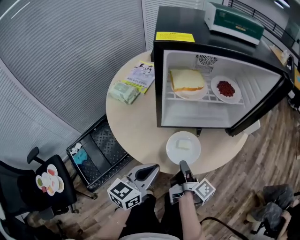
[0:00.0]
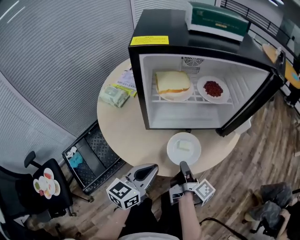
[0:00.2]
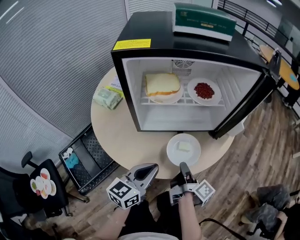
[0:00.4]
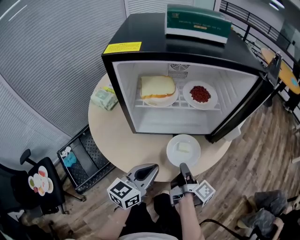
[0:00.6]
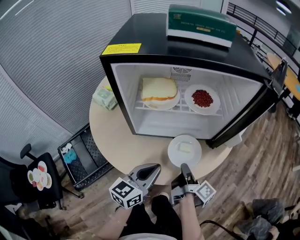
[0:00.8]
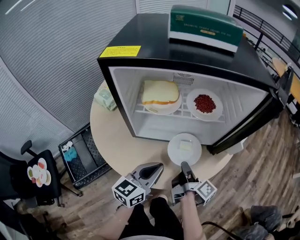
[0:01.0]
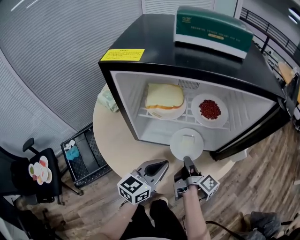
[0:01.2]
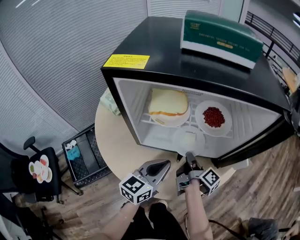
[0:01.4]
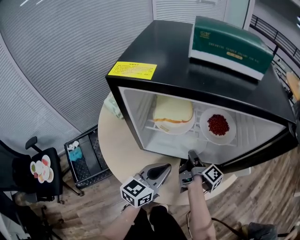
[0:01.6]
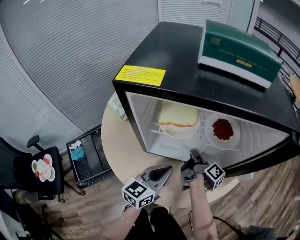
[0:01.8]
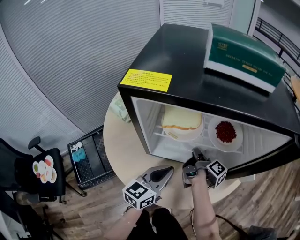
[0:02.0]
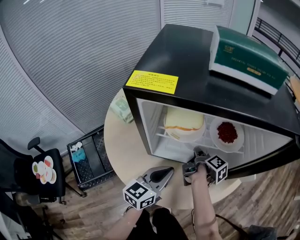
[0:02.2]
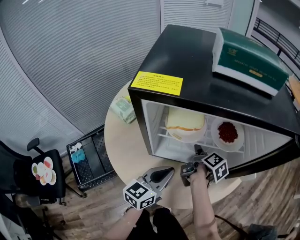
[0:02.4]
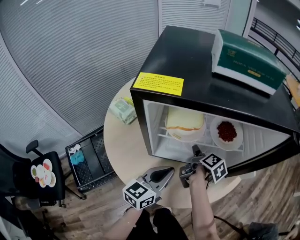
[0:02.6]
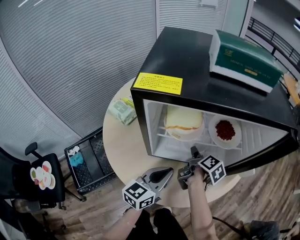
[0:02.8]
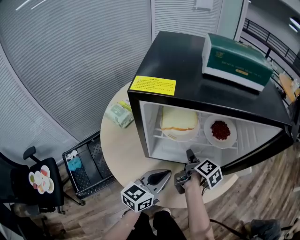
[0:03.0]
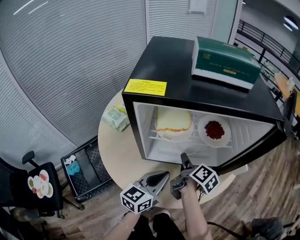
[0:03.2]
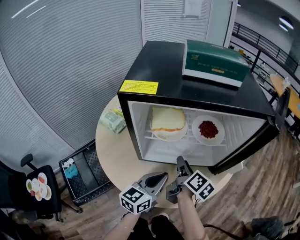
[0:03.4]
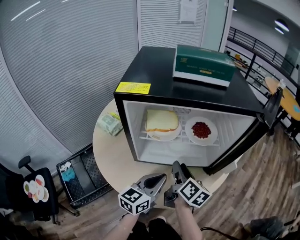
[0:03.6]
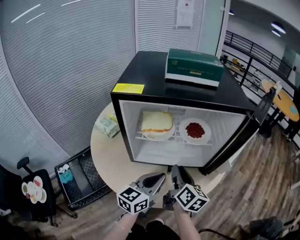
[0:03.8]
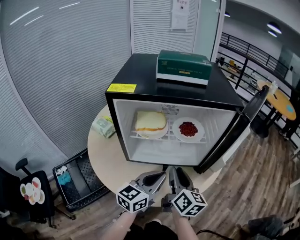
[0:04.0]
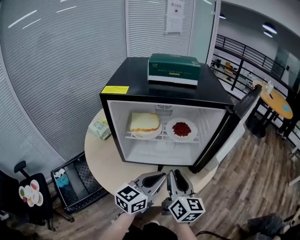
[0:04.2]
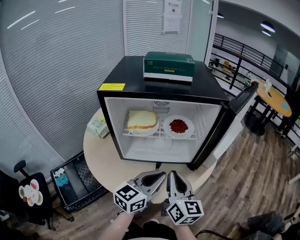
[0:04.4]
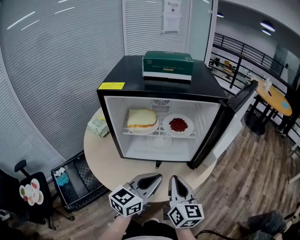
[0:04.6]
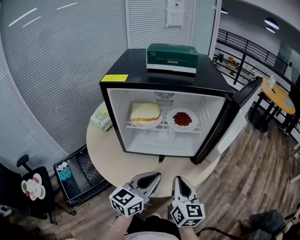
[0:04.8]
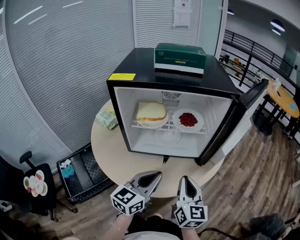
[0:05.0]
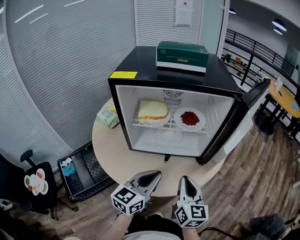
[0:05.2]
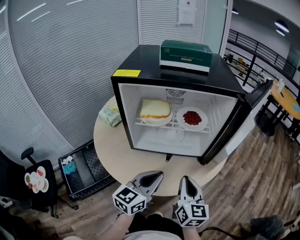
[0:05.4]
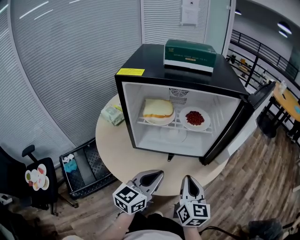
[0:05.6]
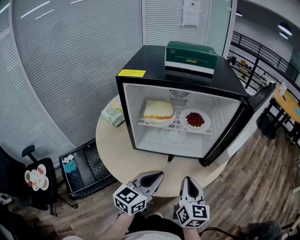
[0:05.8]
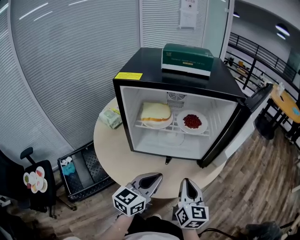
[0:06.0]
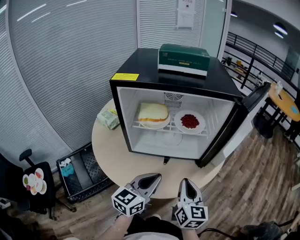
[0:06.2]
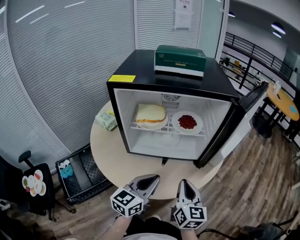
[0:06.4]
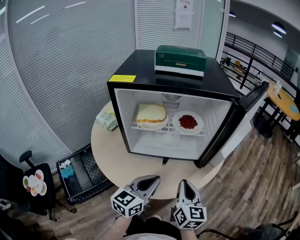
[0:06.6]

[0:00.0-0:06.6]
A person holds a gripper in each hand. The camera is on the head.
0:00.0 to 0:01.6: The right gripper travels forward by about 25 cm. The left gripper is displaced forward and to the right by about 20 cm.
0:01.6 to 0:03.2: The right gripper ends up approximately 5 cm from where it was, swivels some 20 degrees, and opens.
0:03.2 to 0:05.0: The right gripper moves backward, to the right and upward, about 20 cm, twists some 50 degrees counterclockwise, seen from behind, and closes up. Meanwhile the left gripper is displaced to the right, backward and upward by about 10 cm.
0:05.0 to 0:06.6: The grippers stay close to where they were, moving slightly.

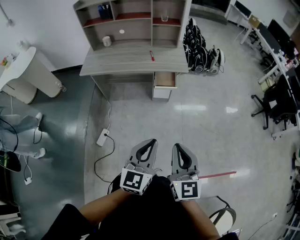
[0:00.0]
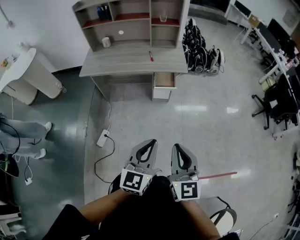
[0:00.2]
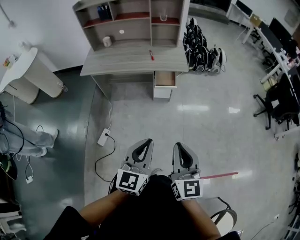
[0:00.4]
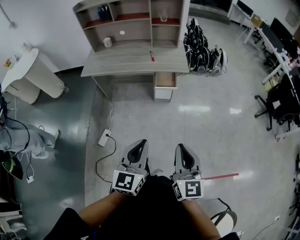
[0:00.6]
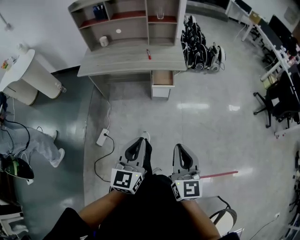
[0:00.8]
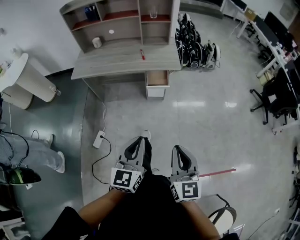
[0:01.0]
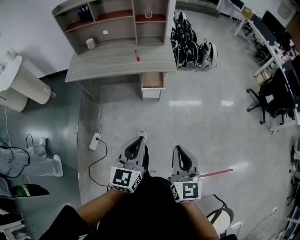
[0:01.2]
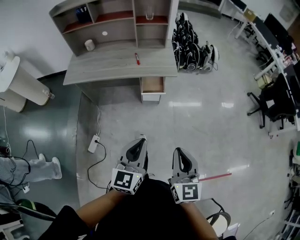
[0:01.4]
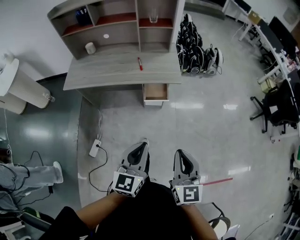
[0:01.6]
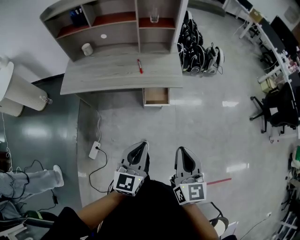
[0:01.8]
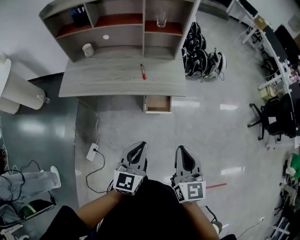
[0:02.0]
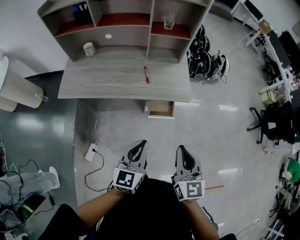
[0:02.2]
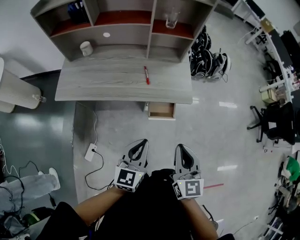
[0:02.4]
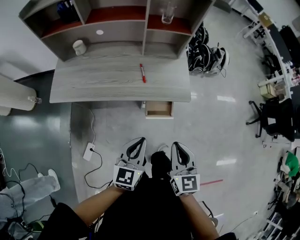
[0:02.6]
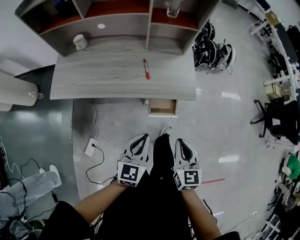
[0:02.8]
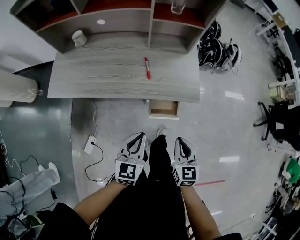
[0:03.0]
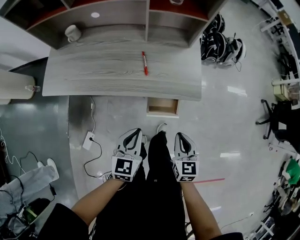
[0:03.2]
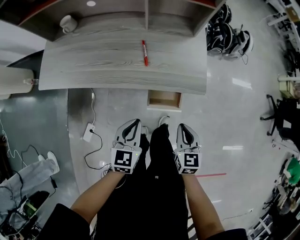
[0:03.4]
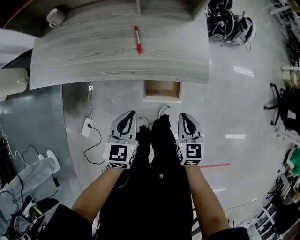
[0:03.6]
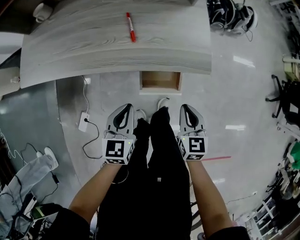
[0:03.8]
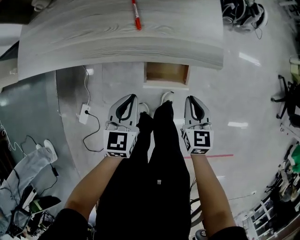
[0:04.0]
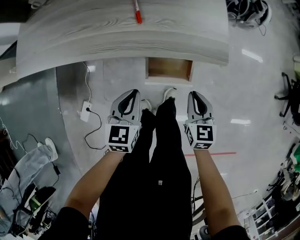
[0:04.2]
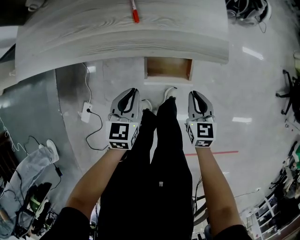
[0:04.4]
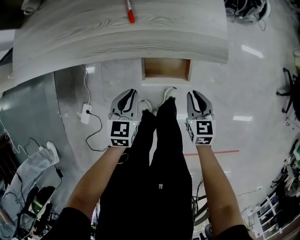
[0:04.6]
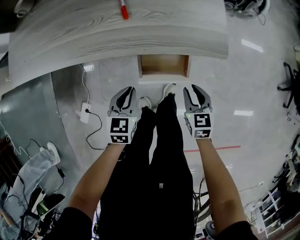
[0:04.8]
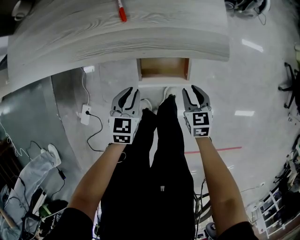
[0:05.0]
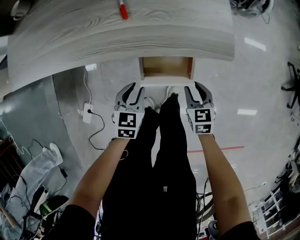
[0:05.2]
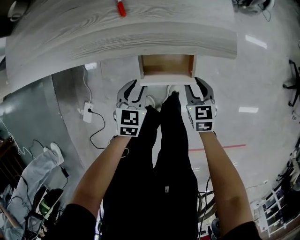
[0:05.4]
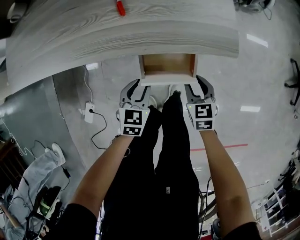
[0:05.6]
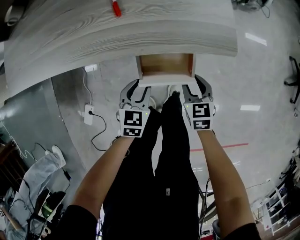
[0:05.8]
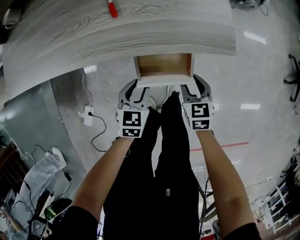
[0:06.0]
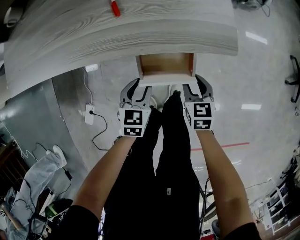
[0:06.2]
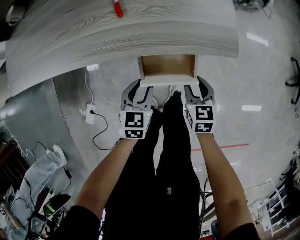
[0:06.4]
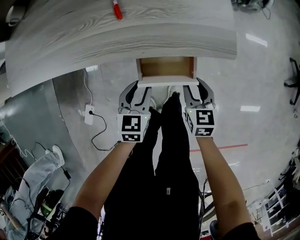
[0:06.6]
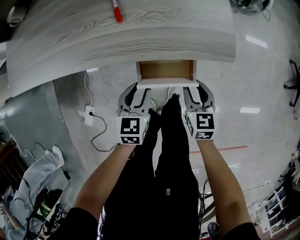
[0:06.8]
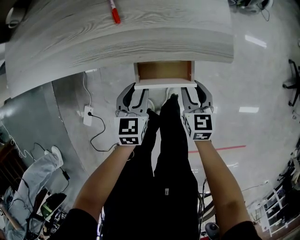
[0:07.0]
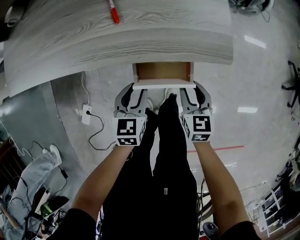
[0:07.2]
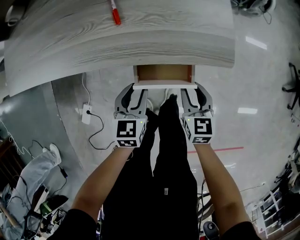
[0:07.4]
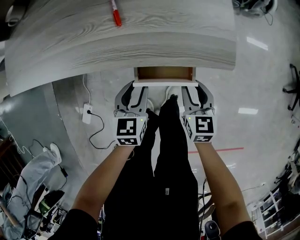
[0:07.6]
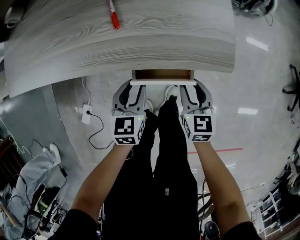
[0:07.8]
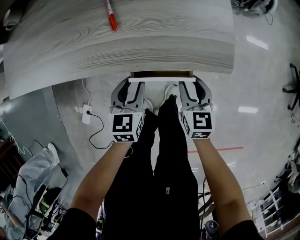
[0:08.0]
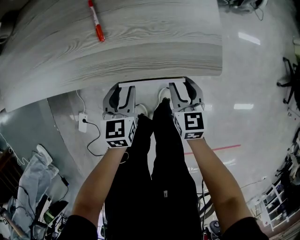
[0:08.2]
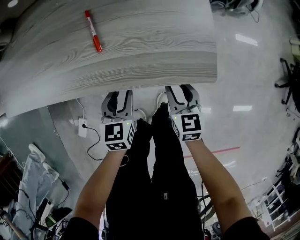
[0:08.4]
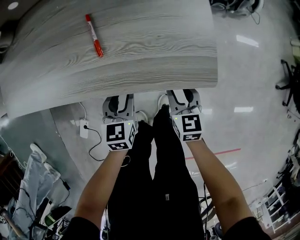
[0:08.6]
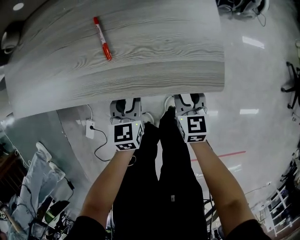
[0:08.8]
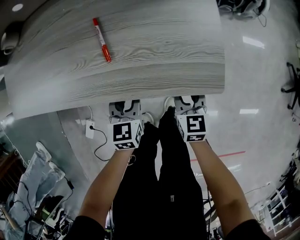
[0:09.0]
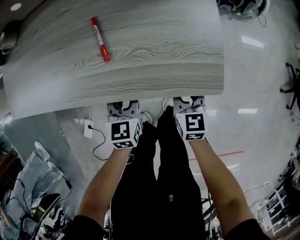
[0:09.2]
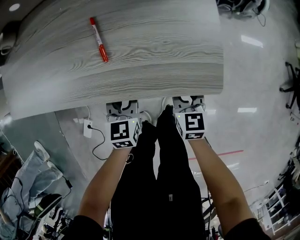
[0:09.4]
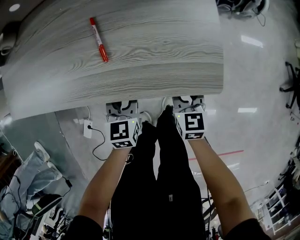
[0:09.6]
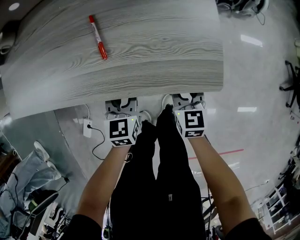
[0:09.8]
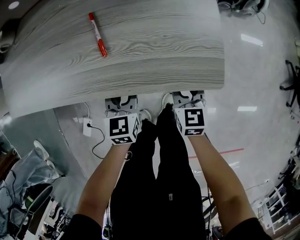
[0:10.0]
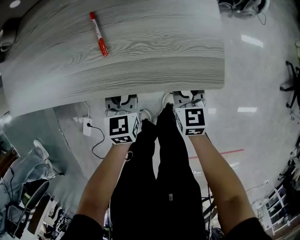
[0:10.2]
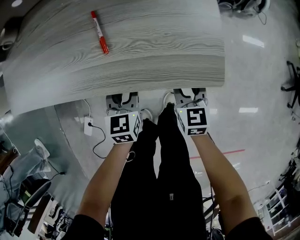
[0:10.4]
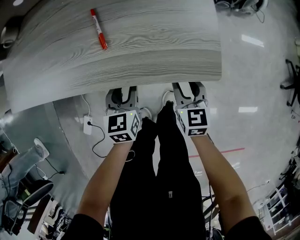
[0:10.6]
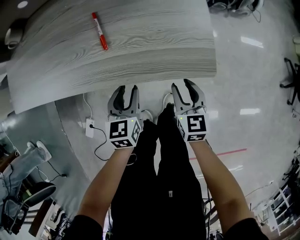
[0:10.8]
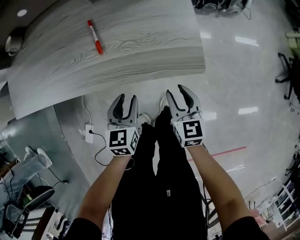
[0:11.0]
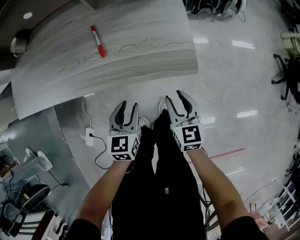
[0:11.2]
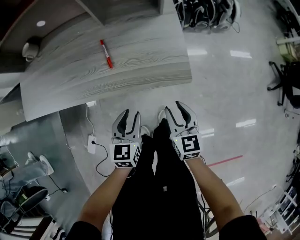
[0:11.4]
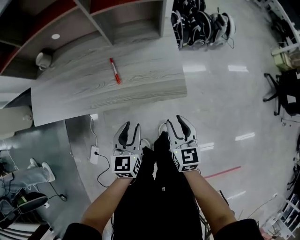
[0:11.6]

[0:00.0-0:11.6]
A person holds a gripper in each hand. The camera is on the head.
0:00.0 to 0:01.4: The right gripper goes about 15 cm forward and to the right. Meanwhile the left gripper heads forward, covering about 10 cm.
0:01.4 to 0:02.8: The grippers both shift forward by roughly 30 cm.
0:02.8 to 0:04.4: The two grippers go some 30 cm downward.
0:04.4 to 0:05.8: Both grippers move downward, roughly 10 cm. The left gripper opens up. Meanwhile the right gripper opens.
0:05.8 to 0:07.2: The left gripper moves about 5 cm.
0:07.2 to 0:08.8: The grippers both shift forward by about 10 cm.
0:08.8 to 0:10.2: The grippers make only small movements.
0:10.2 to 0:11.6: Both grippers travel together upward and backward, some 20 cm.

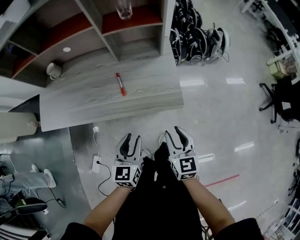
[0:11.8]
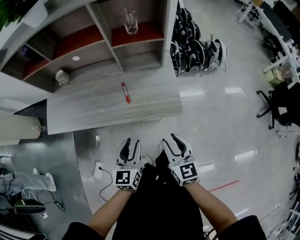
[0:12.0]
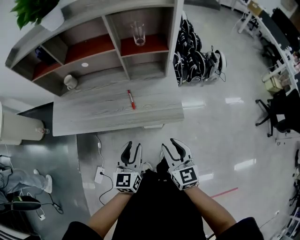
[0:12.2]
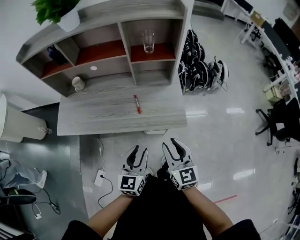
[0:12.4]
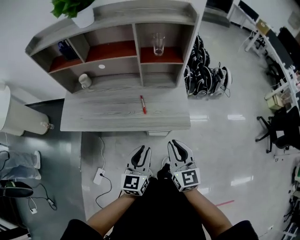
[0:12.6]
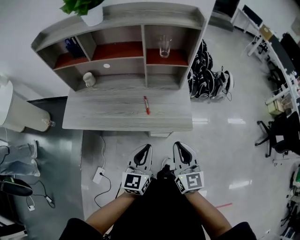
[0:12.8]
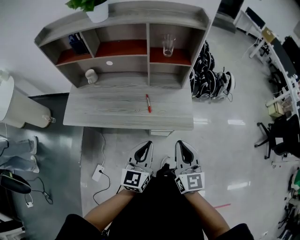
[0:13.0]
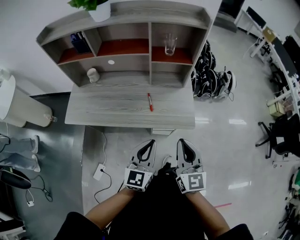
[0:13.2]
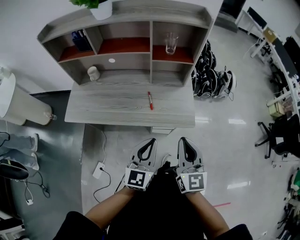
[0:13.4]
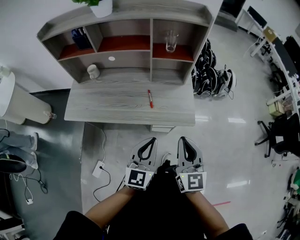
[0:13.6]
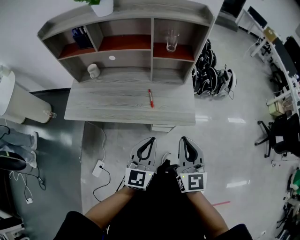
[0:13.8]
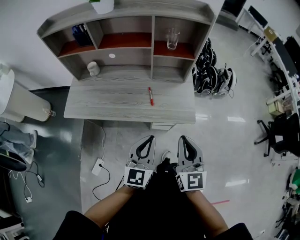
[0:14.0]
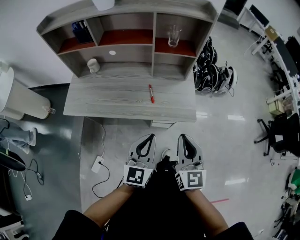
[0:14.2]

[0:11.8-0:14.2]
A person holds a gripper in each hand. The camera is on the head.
0:11.8 to 0:13.0: Both grippers move upward, approximately 20 cm. The left gripper closes; the right gripper changes its angle by some 20 degrees, and closes up.
0:13.0 to 0:14.2: There are only small adjustments of the grippers.

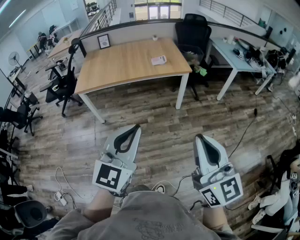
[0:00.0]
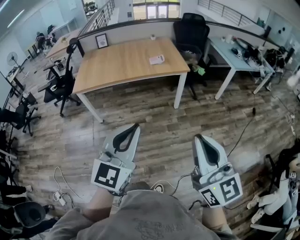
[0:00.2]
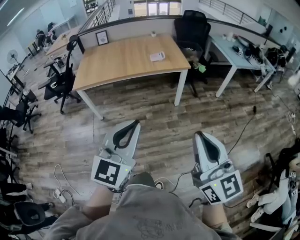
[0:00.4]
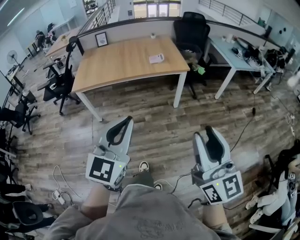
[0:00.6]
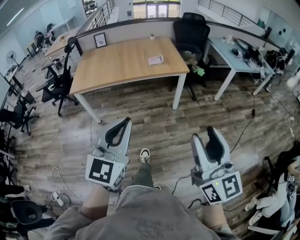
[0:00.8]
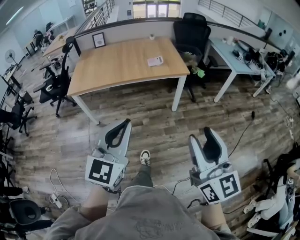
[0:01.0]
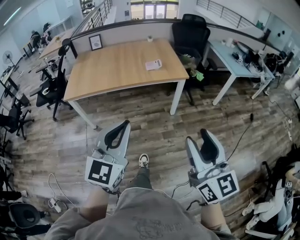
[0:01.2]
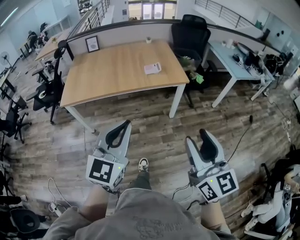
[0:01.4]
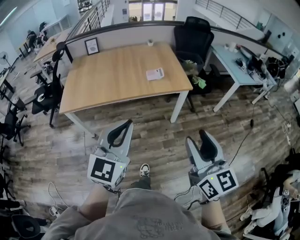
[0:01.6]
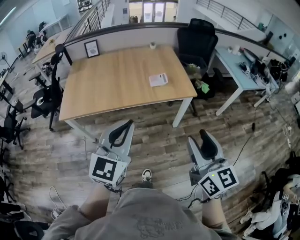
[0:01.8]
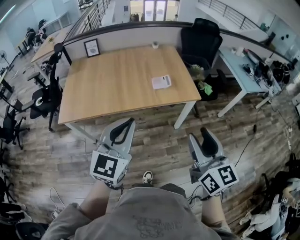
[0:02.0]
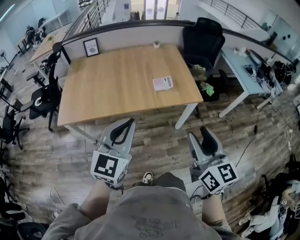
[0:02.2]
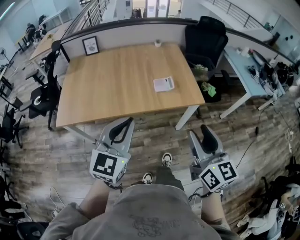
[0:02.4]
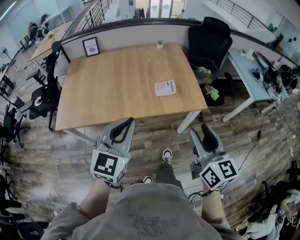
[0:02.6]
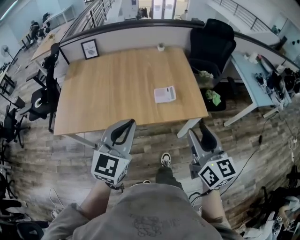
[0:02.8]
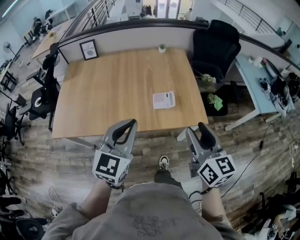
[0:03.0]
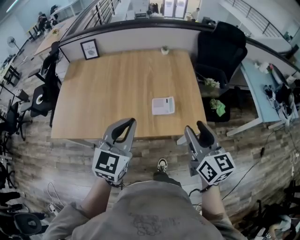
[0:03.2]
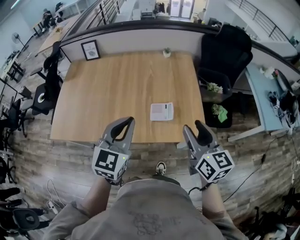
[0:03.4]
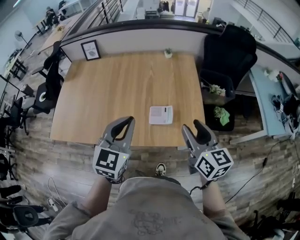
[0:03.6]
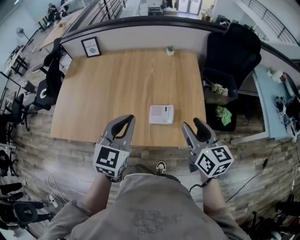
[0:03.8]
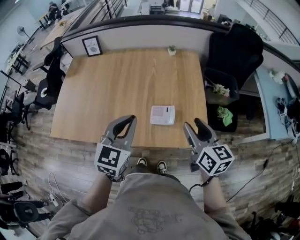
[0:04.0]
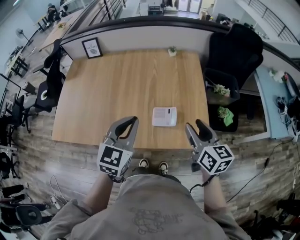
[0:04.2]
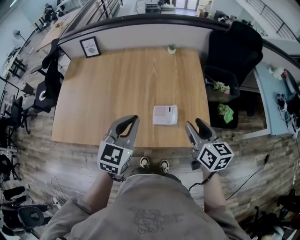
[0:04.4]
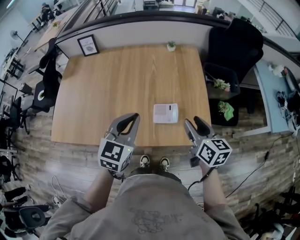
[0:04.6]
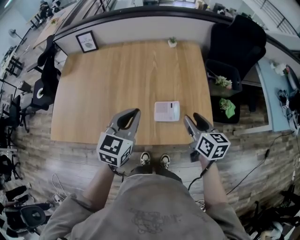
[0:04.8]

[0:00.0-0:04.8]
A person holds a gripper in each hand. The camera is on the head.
0:00.0 to 0:01.6: The grippers both shift forward by some 30 cm. The right gripper opens its fingers.
0:01.6 to 0:03.2: Both grippers are carried forward, about 50 cm.
0:03.2 to 0:04.8: The grippers both shift forward and downward by approximately 20 cm. The right gripper rotates some 20 degrees.
